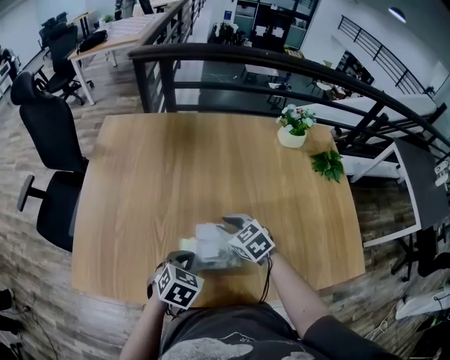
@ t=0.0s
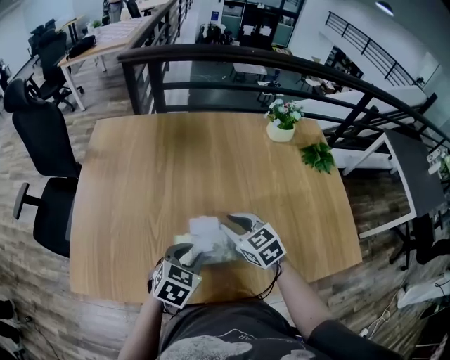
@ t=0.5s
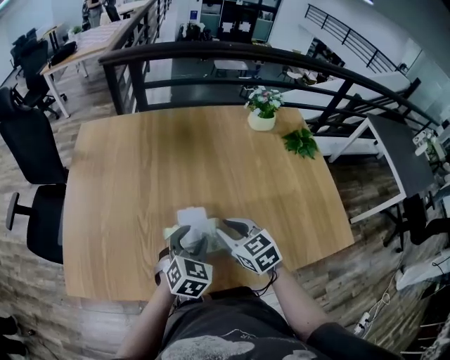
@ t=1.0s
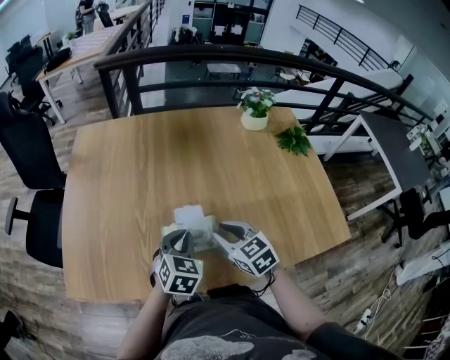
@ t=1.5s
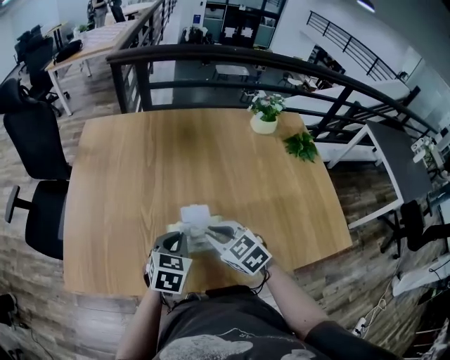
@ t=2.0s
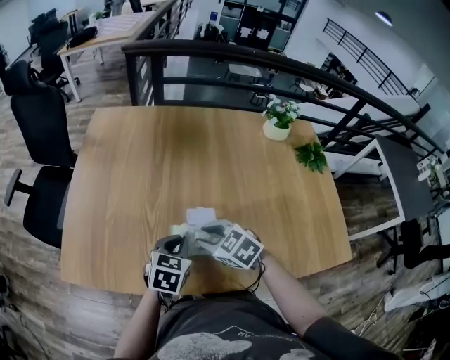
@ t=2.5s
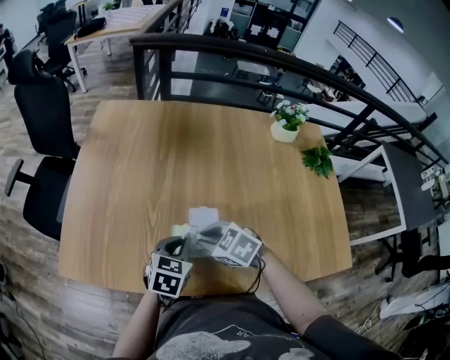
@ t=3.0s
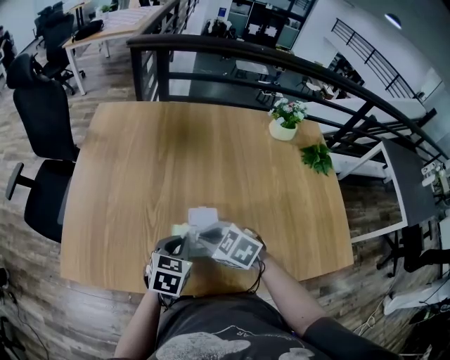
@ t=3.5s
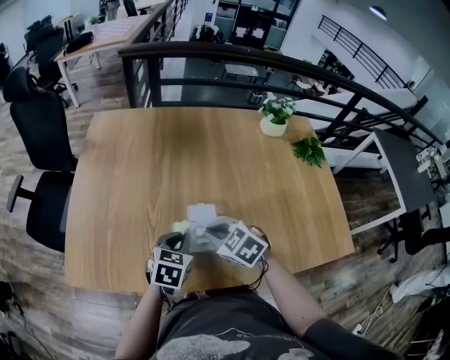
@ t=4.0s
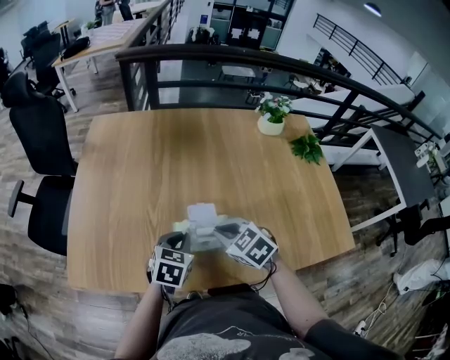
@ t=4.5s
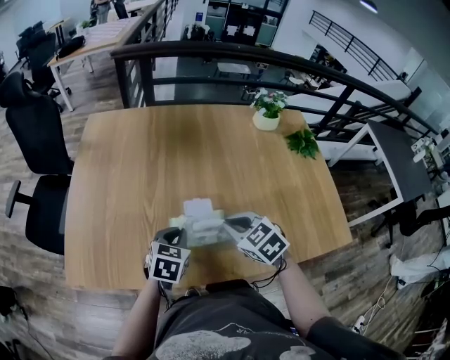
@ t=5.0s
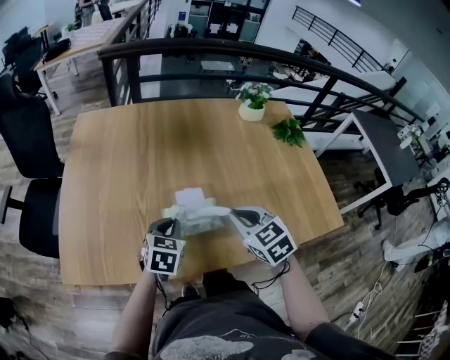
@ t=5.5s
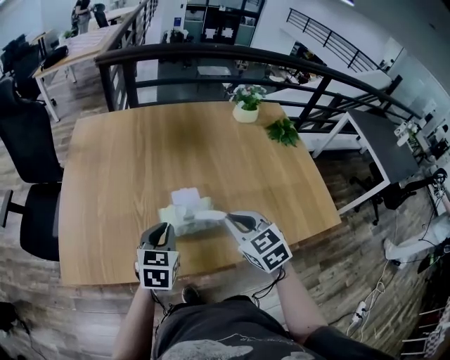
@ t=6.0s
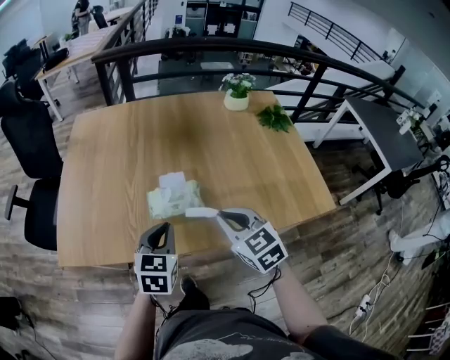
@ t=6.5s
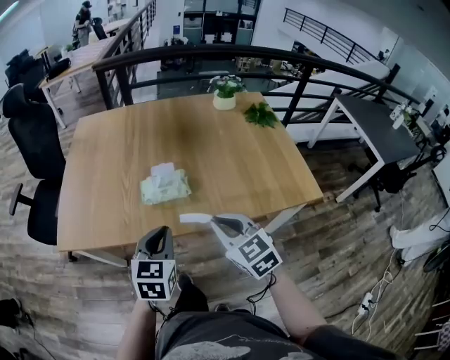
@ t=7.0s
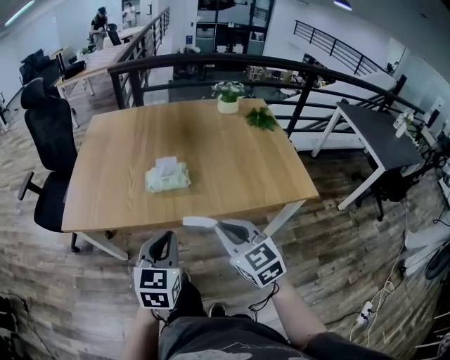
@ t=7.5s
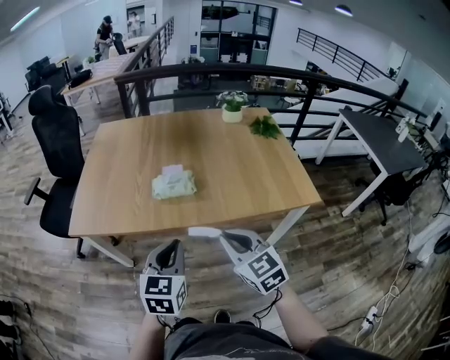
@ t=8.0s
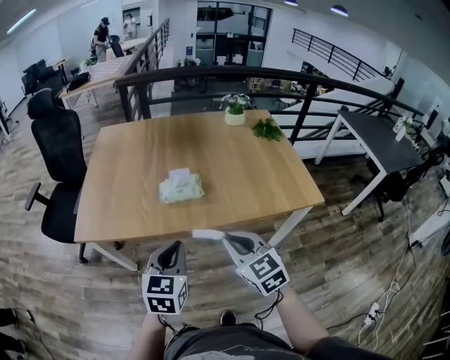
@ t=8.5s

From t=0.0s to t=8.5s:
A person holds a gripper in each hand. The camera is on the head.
From t=0.0s to t=2.0s: The right gripper heads backward and upward, covering some 10 cm. Meanwhile the left gripper opens, then closes once more.
From t=4.0s to t=6.5s: The left gripper travels backward and upward by about 15 cm; the right gripper shifts some 20 cm backward, to the right and upward, and swivels roughly 30 degrees.
From t=6.5s to t=8.5s: The two grippers go approximately 20 cm backward.

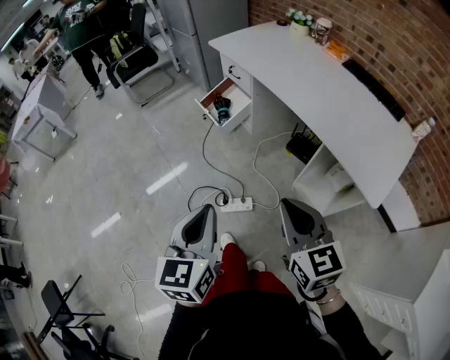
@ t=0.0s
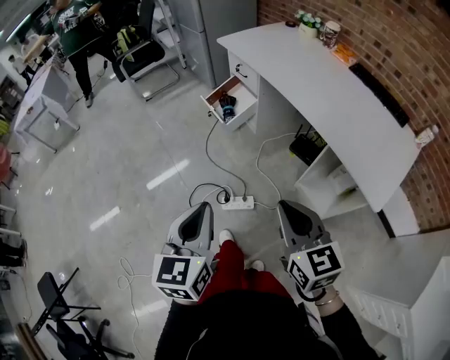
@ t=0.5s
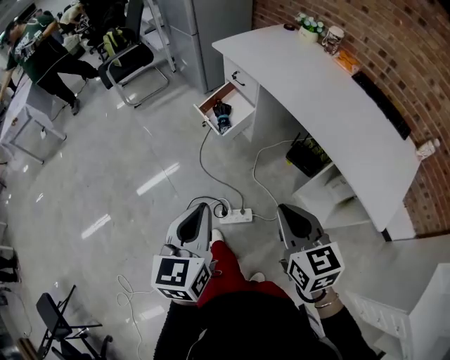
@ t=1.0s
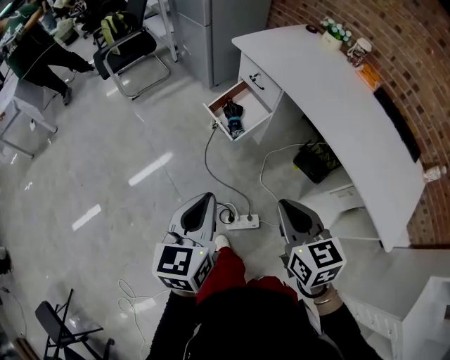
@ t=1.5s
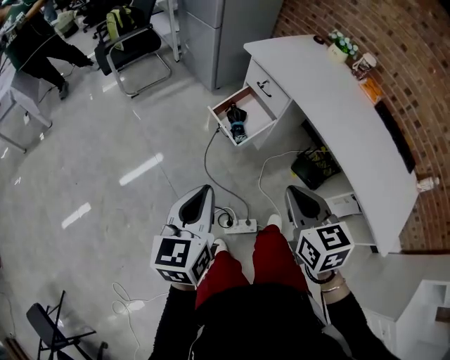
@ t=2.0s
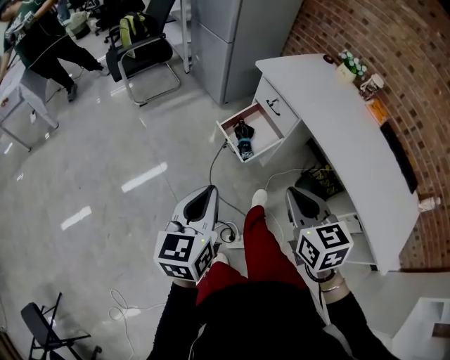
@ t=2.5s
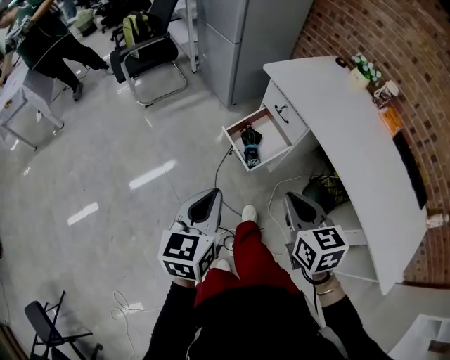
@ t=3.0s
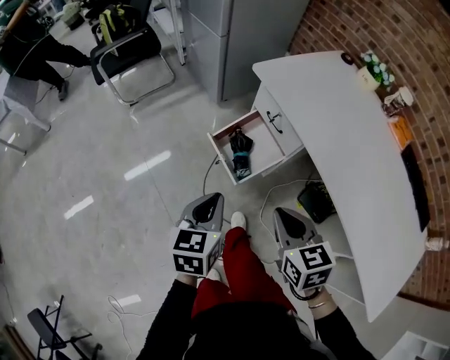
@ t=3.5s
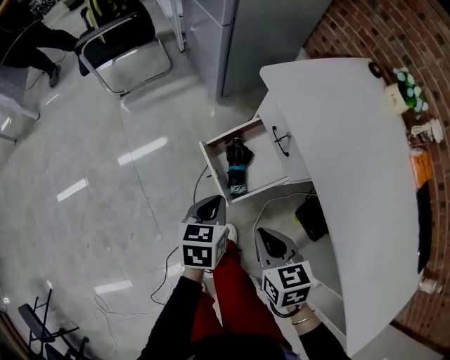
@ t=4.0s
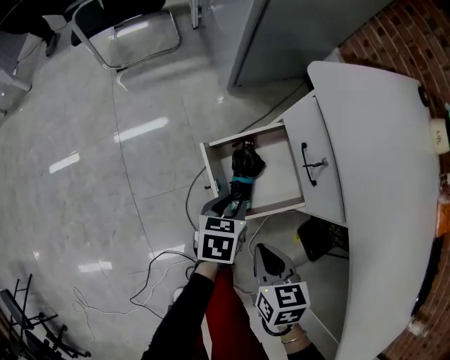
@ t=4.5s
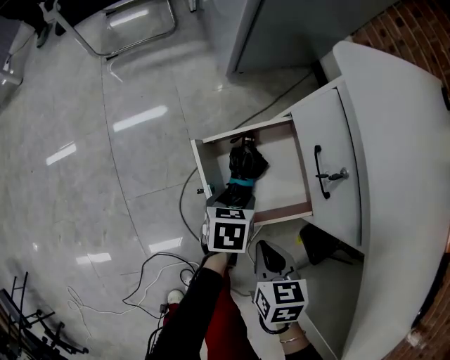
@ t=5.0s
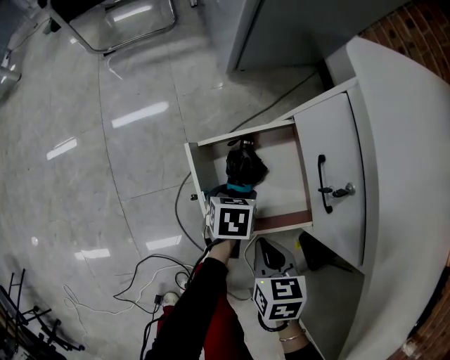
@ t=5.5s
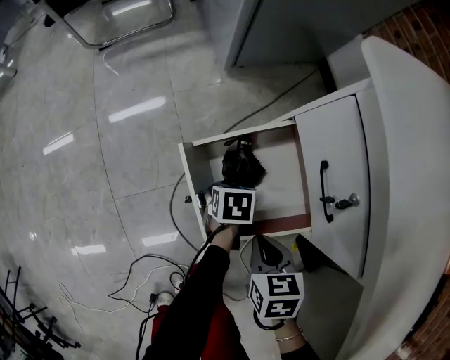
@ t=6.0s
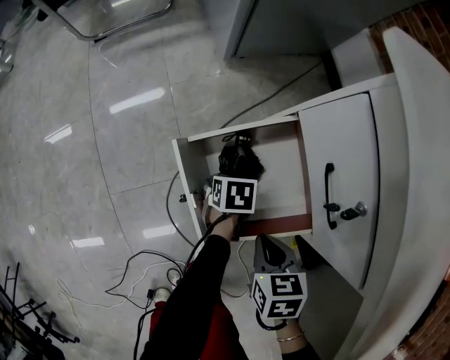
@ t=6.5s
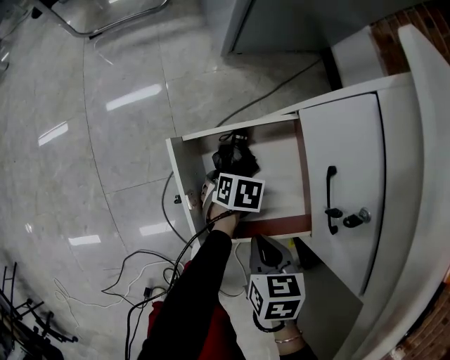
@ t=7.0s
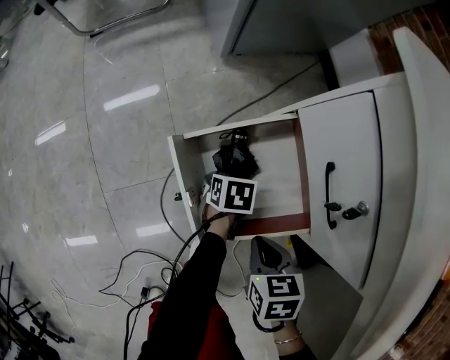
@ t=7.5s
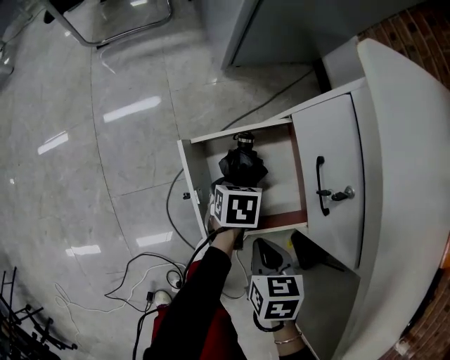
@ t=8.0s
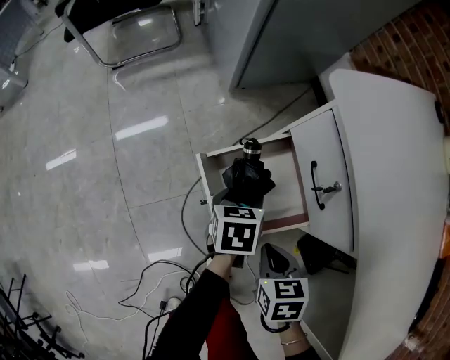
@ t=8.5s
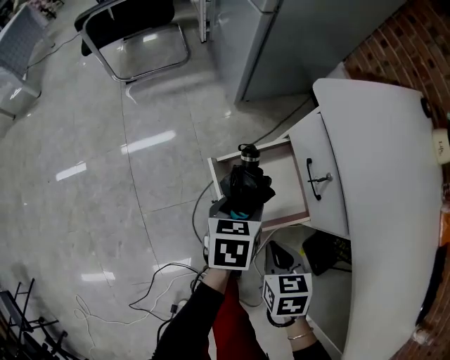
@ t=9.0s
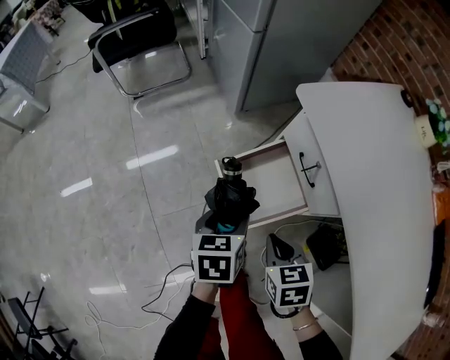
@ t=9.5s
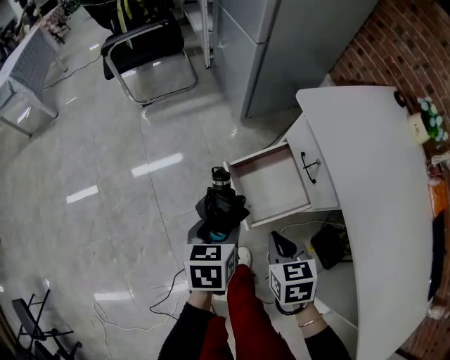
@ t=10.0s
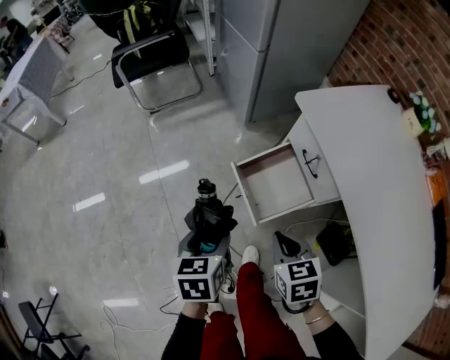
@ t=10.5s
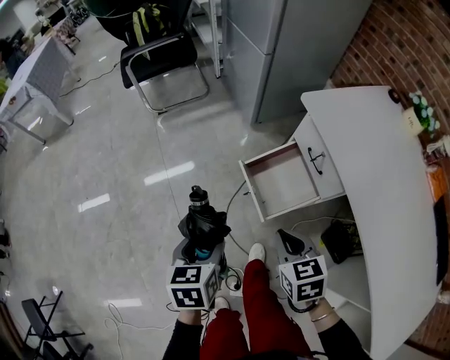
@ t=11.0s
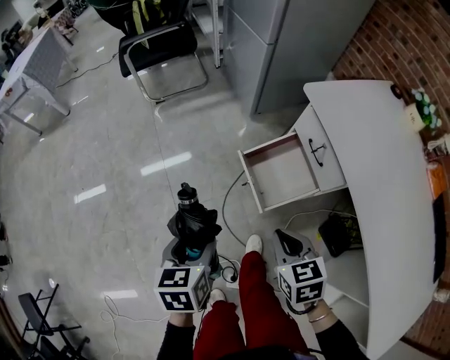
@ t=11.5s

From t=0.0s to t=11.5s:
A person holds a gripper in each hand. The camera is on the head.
From t=0.0s to t=2.0s: Both grippers travel together forward and to the left, about 30 cm.
From t=2.0s to t=4.0s: The two grippers go some 40 cm forward and downward. The left gripper swivels roughly 30 degrees. The right gripper turns by approximately 20 degrees.
From t=4.0s to t=6.0s: Both grippers move downward and forward, about 35 cm. The left gripper turns by roughly 30 degrees, and opens its fingers.
From t=6.0s to t=7.5s: The grippers make only small movements.
From t=7.5s to t=9.5s: The right gripper heads upward, covering roughly 20 cm; the left gripper shifts approximately 35 cm upward, and turns by approximately 20 degrees.
From t=9.5s to t=11.5s: The left gripper travels to the left, backward and upward by about 25 cm. Meanwhile the right gripper heads upward, backward and to the left, covering some 15 cm.

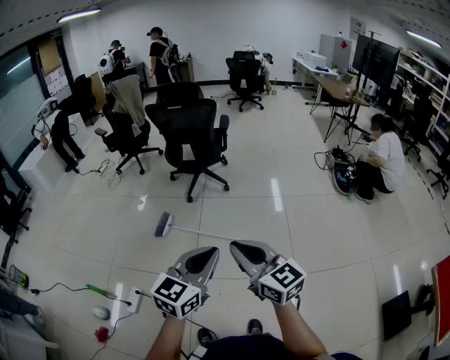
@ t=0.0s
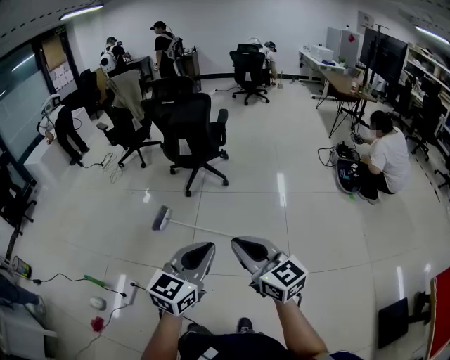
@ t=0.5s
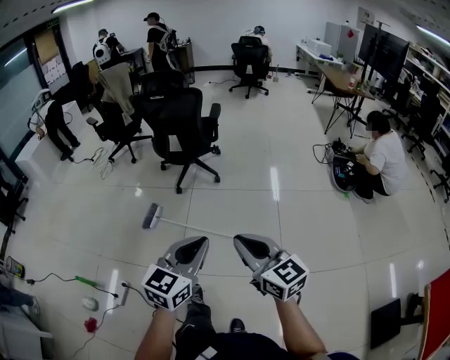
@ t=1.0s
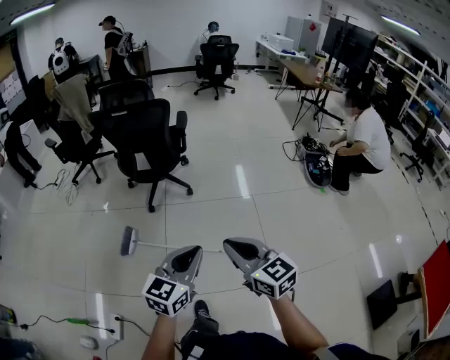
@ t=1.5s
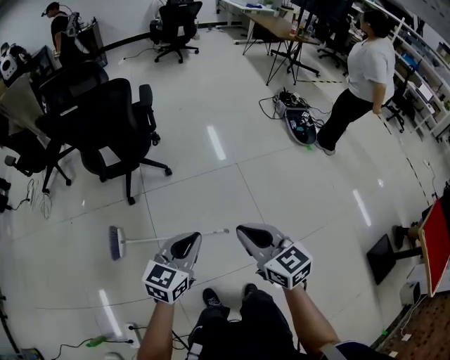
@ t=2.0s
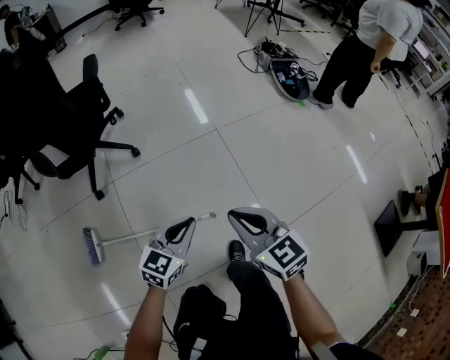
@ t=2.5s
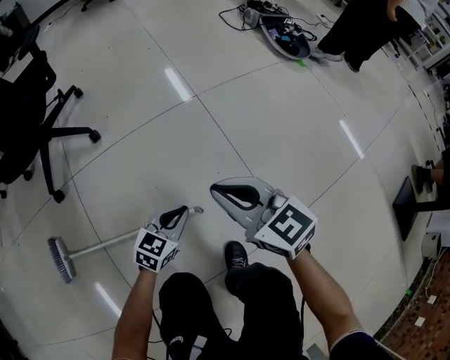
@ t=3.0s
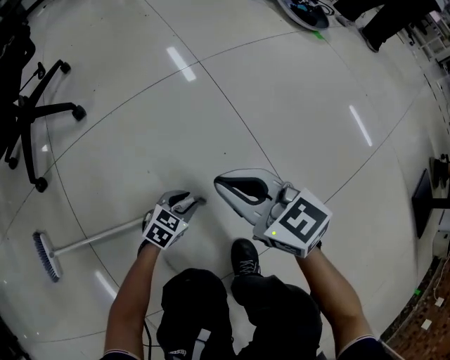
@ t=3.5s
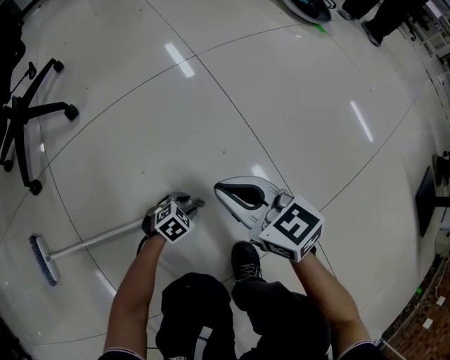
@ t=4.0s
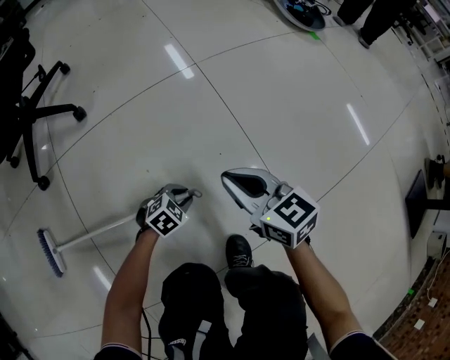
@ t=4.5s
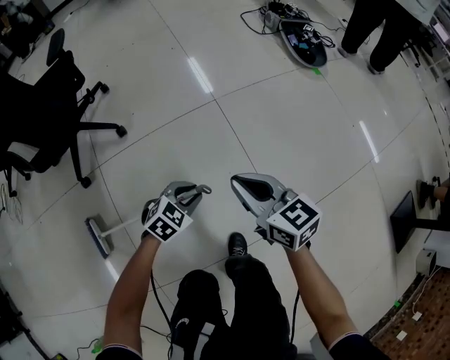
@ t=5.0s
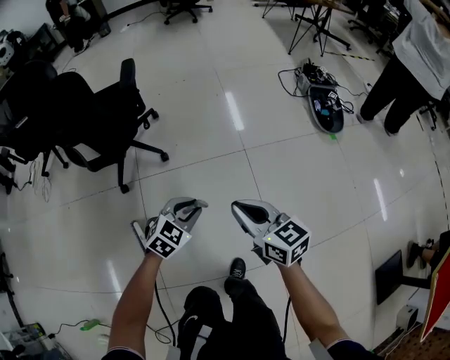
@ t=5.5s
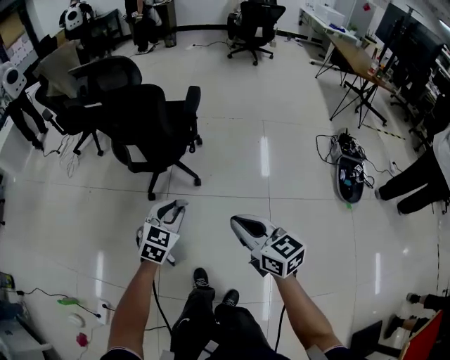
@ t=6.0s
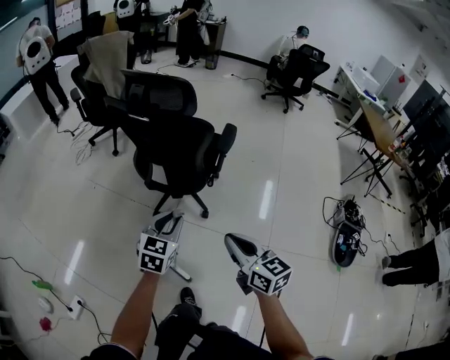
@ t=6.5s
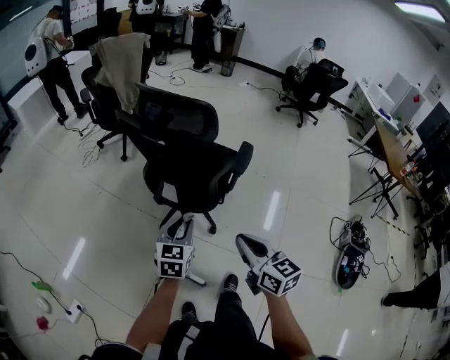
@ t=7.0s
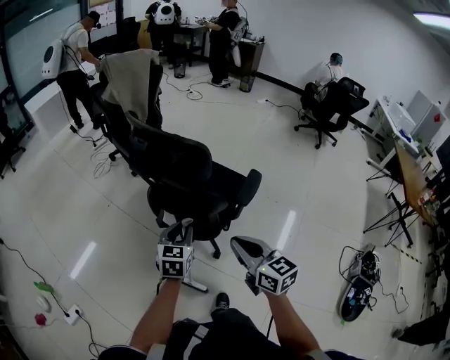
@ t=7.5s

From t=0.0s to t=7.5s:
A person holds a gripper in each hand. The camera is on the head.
From t=0.0s to t=2.0s: Both grippers move forward and downward, about 35 cm. The left gripper turns by approximately 20 degrees. Meanwhile the right gripper rotates roughly 30 degrees.
From t=2.0s to t=4.0s: Both grippers move downward, some 70 cm. The left gripper angles its fingers downward, by about 50 degrees, and opens.
From t=4.0s to t=5.5s: The grippers both shift upward by approximately 60 cm. The left gripper rotates approximately 30 degrees.
From t=5.5s to t=7.5s: The pair of grippers is taken roughly 50 cm. The left gripper changes its angle by roughly 80 degrees; the right gripper changes its angle by about 40 degrees.
